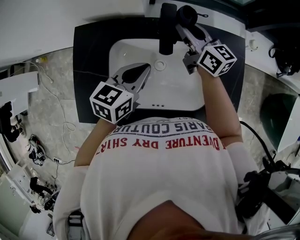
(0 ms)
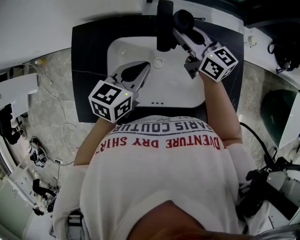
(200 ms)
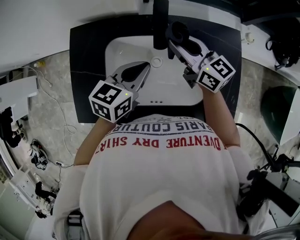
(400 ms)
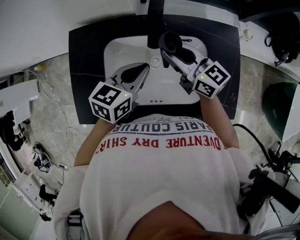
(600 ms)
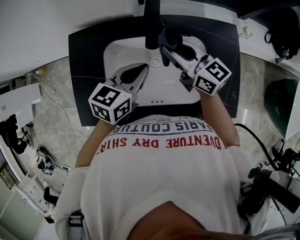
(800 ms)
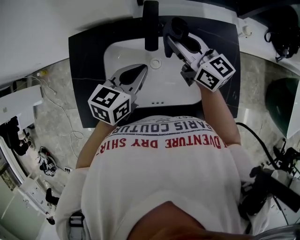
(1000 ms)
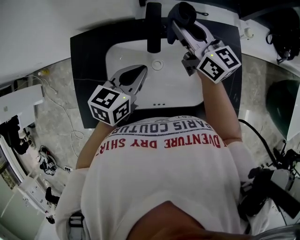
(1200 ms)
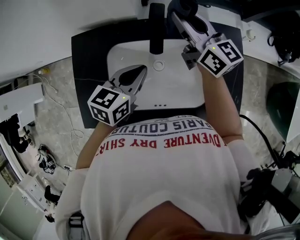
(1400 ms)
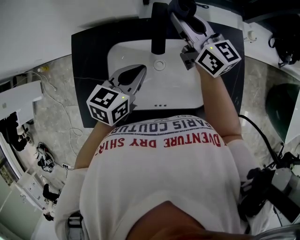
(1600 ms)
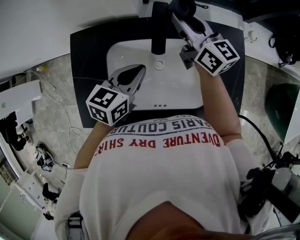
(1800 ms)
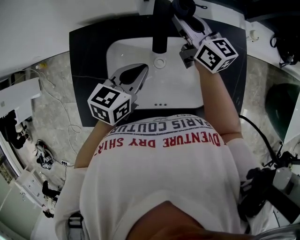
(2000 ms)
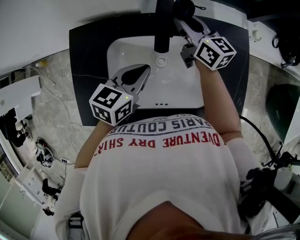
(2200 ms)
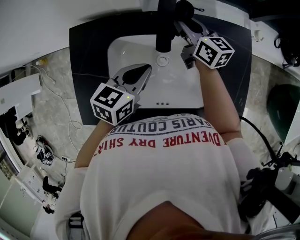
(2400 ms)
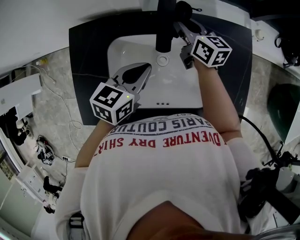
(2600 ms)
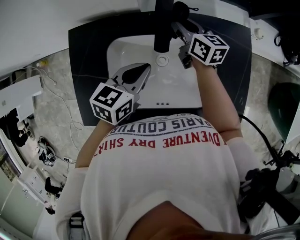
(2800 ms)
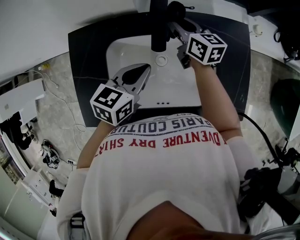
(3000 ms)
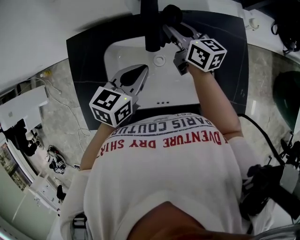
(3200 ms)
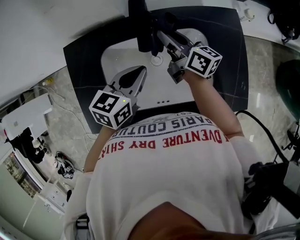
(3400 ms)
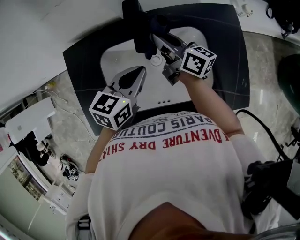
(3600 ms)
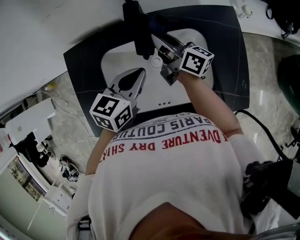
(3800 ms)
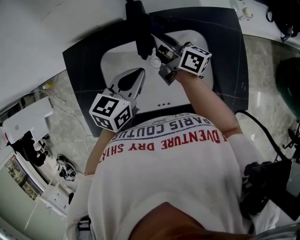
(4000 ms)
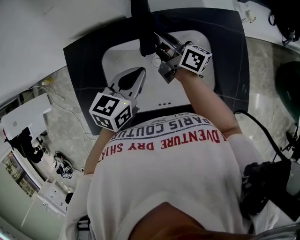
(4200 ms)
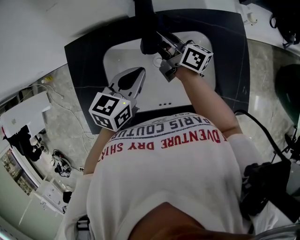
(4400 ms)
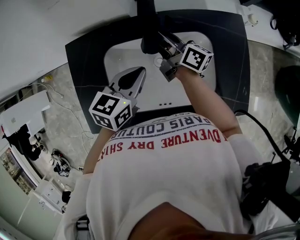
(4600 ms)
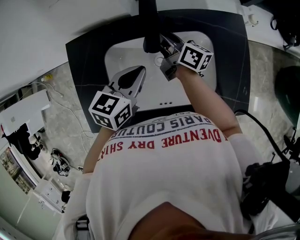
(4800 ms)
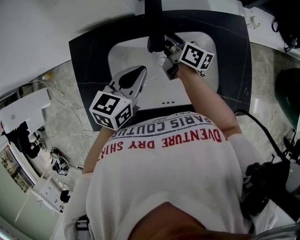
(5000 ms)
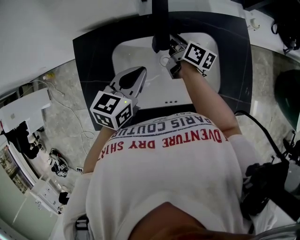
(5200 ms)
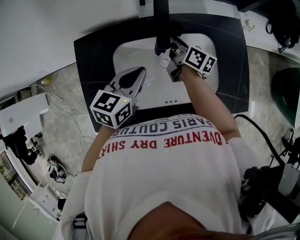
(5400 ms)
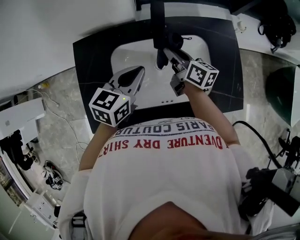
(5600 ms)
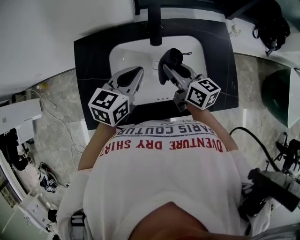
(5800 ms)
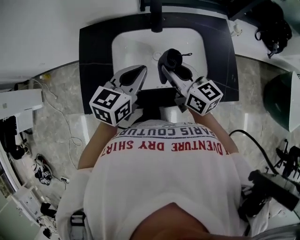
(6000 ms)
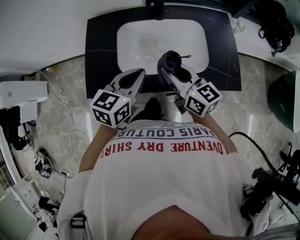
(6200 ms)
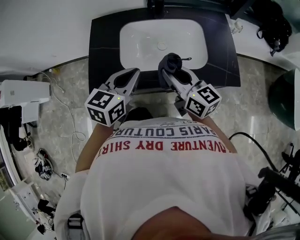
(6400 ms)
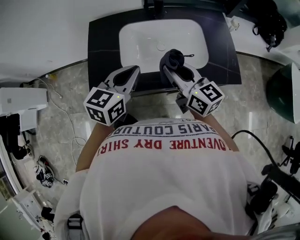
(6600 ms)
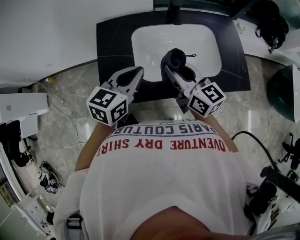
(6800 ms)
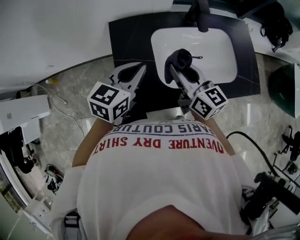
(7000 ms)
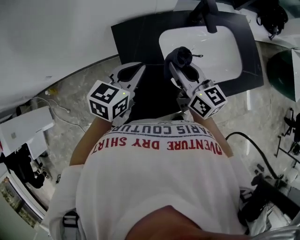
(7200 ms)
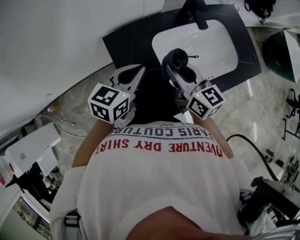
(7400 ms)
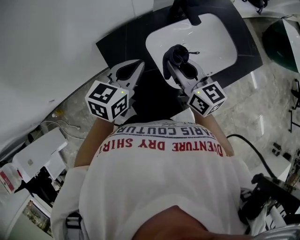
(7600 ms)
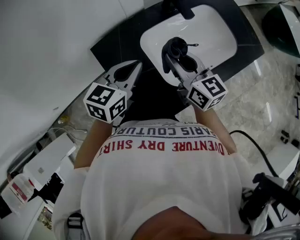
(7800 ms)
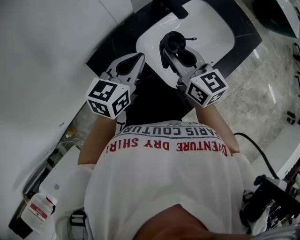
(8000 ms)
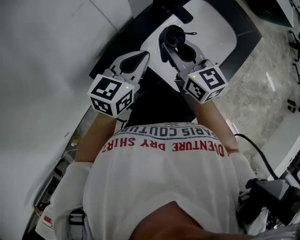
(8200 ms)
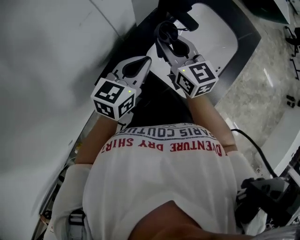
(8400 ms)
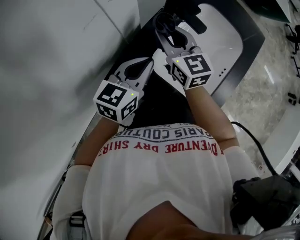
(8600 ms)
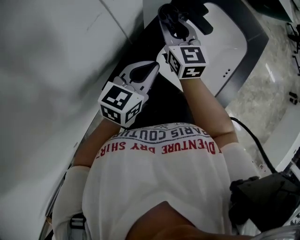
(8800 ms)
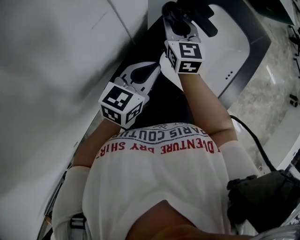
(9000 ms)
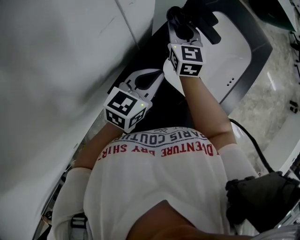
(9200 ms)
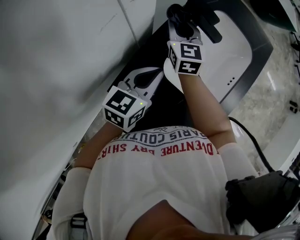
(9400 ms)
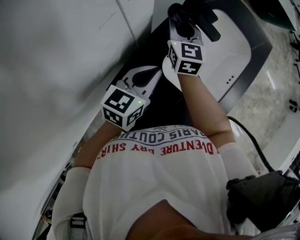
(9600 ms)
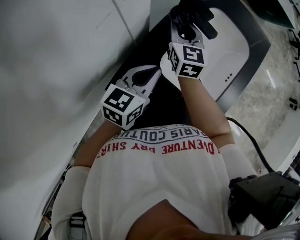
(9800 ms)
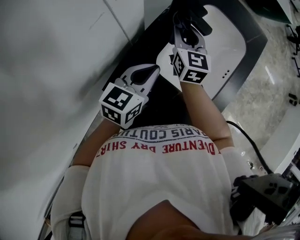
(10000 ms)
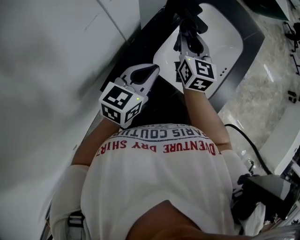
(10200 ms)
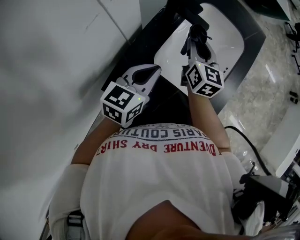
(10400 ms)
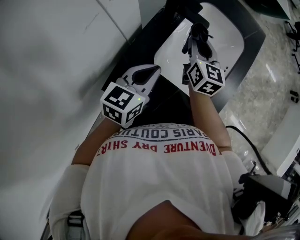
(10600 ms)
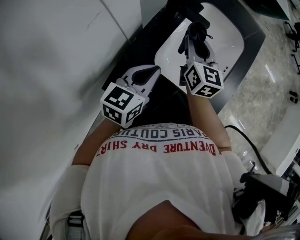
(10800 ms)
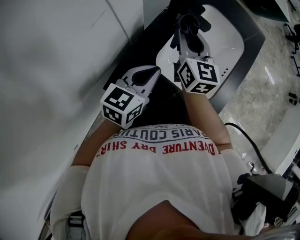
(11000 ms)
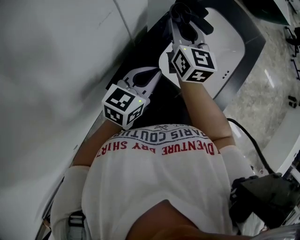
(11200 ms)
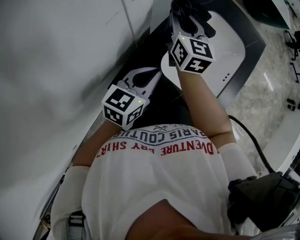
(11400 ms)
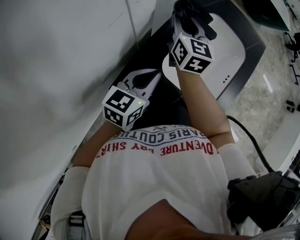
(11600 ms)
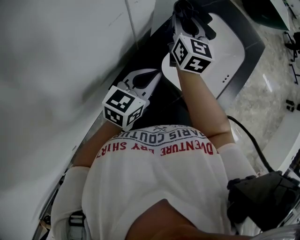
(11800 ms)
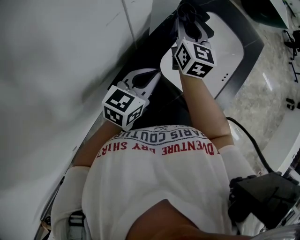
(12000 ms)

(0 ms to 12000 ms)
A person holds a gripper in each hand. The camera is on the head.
0 ms - 1600 ms: The right gripper heads upward, covering roughly 5 cm, and goes backward and returns, approximately 10 cm each way.
1600 ms - 3000 ms: The right gripper is displaced downward by about 15 cm, and changes its angle by approximately 20 degrees.
3000 ms - 4400 ms: The right gripper swivels roughly 40 degrees.
4400 ms - 6000 ms: The left gripper moves backward and upward, roughly 15 cm; the right gripper goes approximately 25 cm backward, and swivels some 40 degrees.
6000 ms - 7600 ms: The right gripper changes place by about 20 cm, and rotates approximately 30 degrees, while the left gripper ends up some 25 cm from where it was, and rotates some 20 degrees.
7600 ms - 9000 ms: The right gripper ends up roughly 30 cm from where it was, and rotates roughly 50 degrees. The left gripper ends up approximately 15 cm from where it was, and turns by roughly 30 degrees.
9000 ms - 10400 ms: The right gripper goes roughly 15 cm to the right.
10400 ms - 12000 ms: The right gripper heads to the left and upward, covering approximately 10 cm.

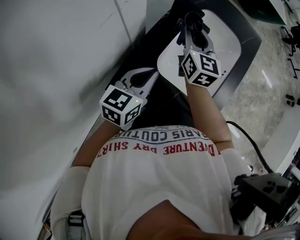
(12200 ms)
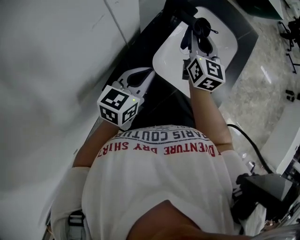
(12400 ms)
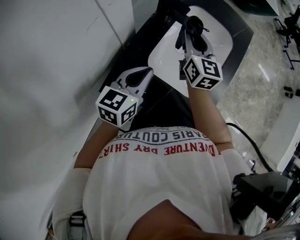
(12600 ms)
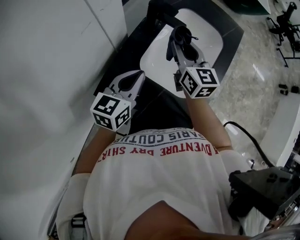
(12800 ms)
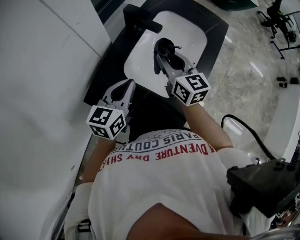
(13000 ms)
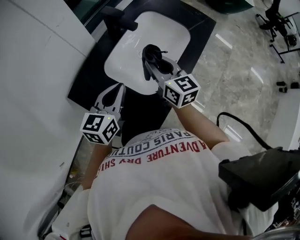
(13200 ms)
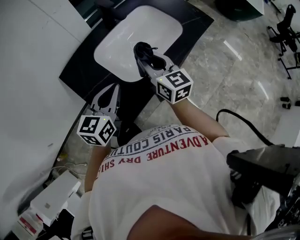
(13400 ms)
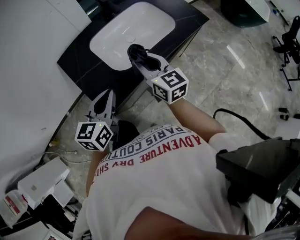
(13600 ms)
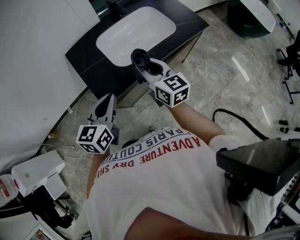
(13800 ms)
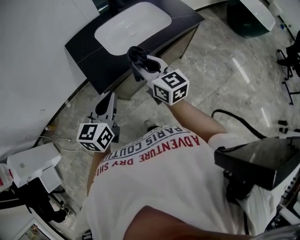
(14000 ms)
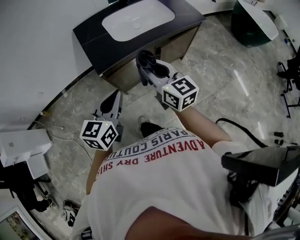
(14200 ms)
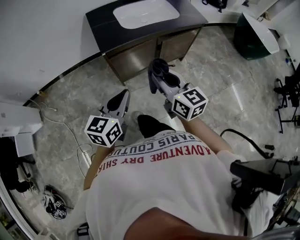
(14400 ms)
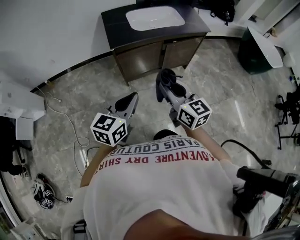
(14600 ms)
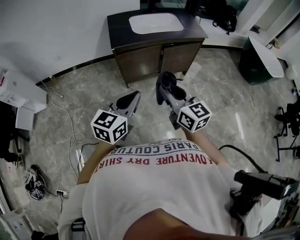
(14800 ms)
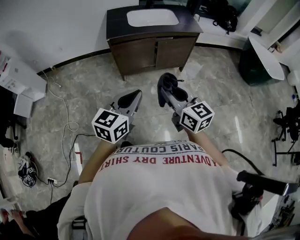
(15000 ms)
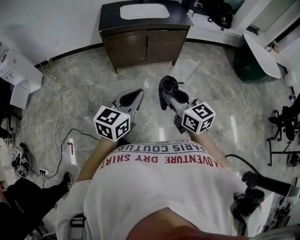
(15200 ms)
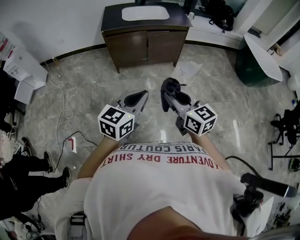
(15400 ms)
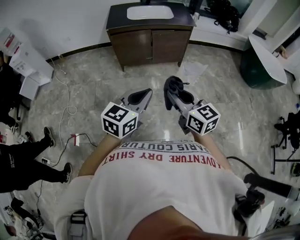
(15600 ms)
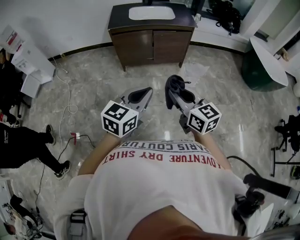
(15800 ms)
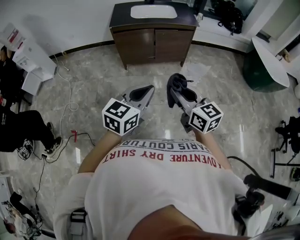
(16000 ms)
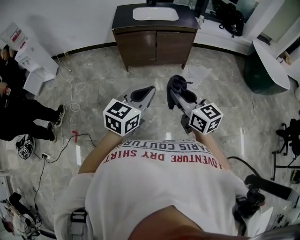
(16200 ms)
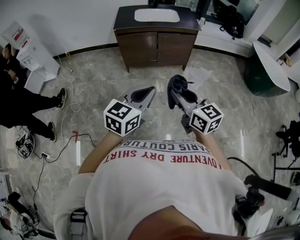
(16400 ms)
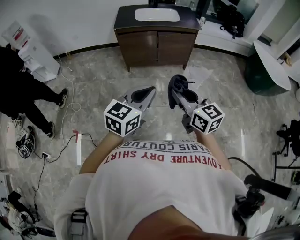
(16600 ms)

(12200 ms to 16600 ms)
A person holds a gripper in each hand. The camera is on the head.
12200 ms - 13600 ms: The left gripper moves approximately 35 cm, and changes its angle by about 40 degrees. Meanwhile the right gripper changes place by some 35 cm, and changes its angle by approximately 50 degrees.
13600 ms - 15200 ms: The pair of grippers is taken backward and to the right, some 80 cm. The right gripper swivels some 30 degrees.
15200 ms - 16600 ms: The grippers both shift backward and to the right by approximately 10 cm.

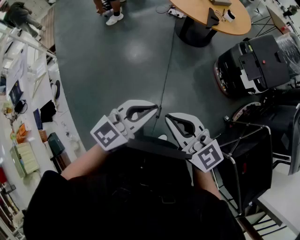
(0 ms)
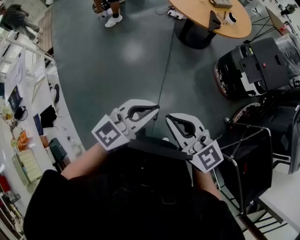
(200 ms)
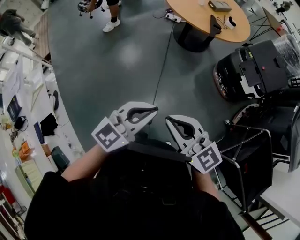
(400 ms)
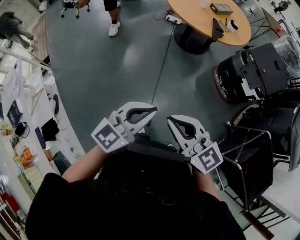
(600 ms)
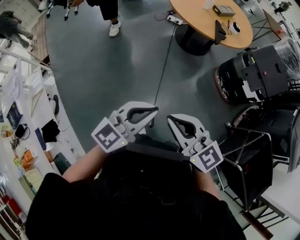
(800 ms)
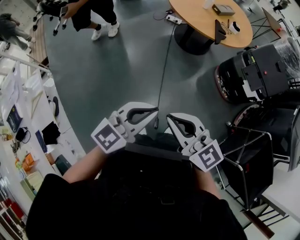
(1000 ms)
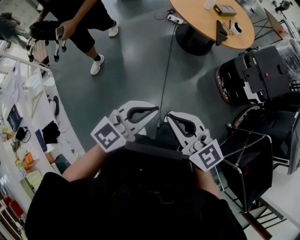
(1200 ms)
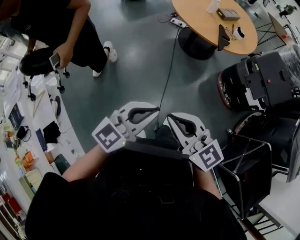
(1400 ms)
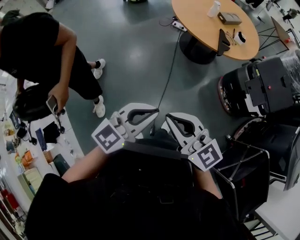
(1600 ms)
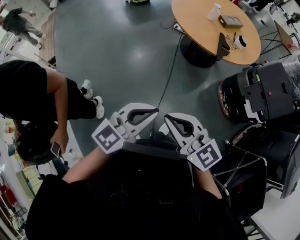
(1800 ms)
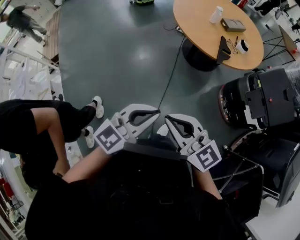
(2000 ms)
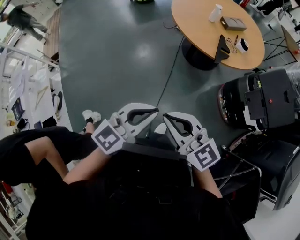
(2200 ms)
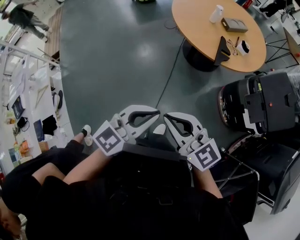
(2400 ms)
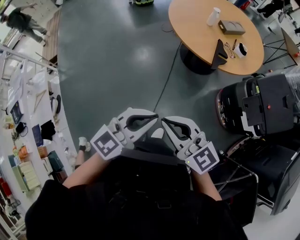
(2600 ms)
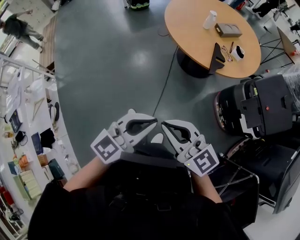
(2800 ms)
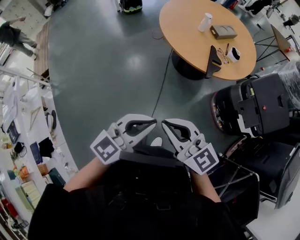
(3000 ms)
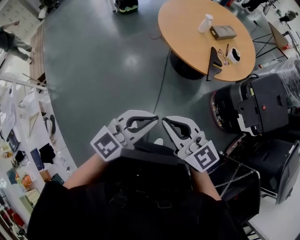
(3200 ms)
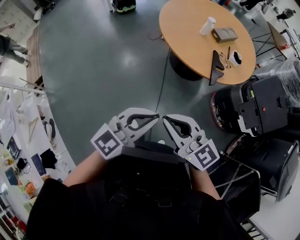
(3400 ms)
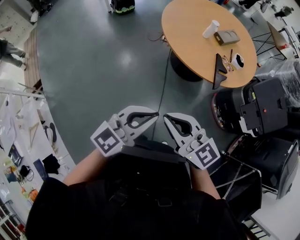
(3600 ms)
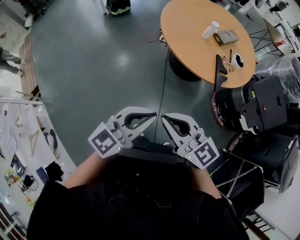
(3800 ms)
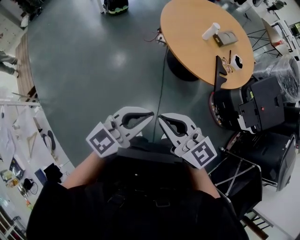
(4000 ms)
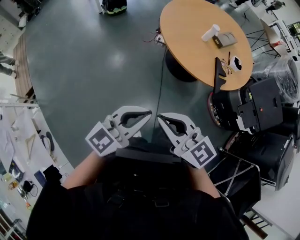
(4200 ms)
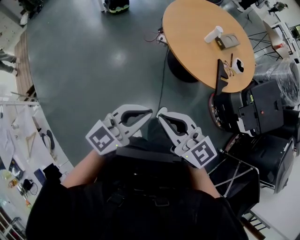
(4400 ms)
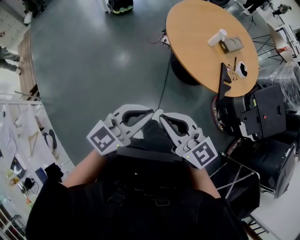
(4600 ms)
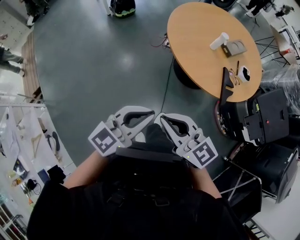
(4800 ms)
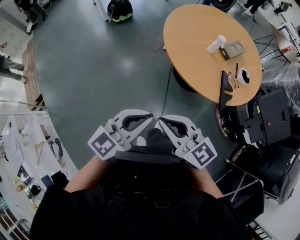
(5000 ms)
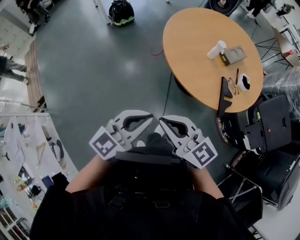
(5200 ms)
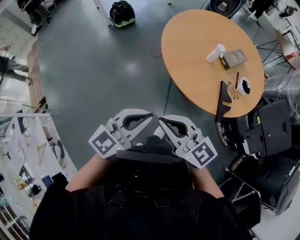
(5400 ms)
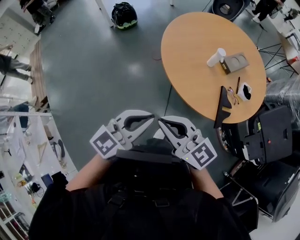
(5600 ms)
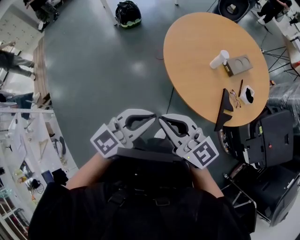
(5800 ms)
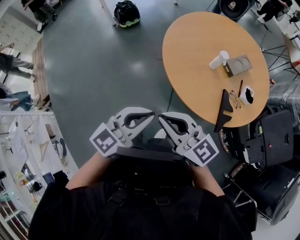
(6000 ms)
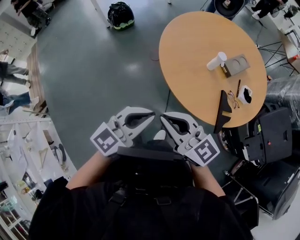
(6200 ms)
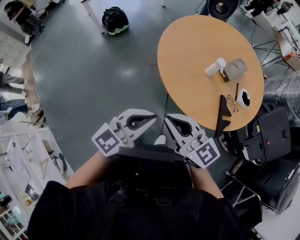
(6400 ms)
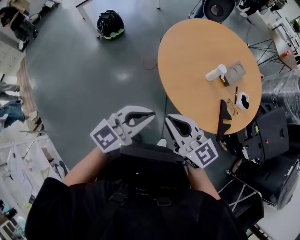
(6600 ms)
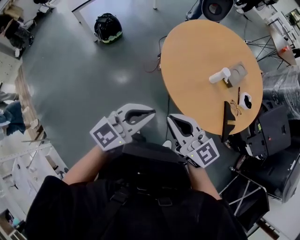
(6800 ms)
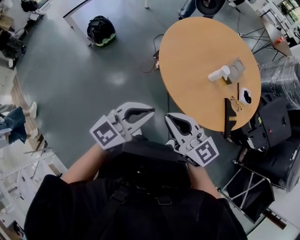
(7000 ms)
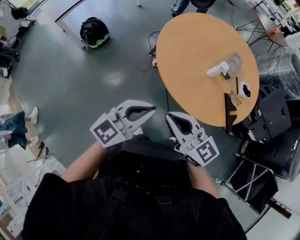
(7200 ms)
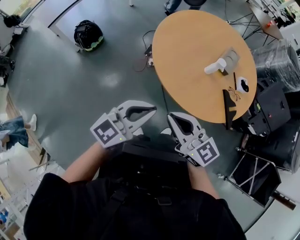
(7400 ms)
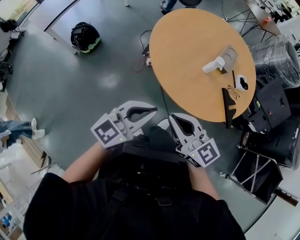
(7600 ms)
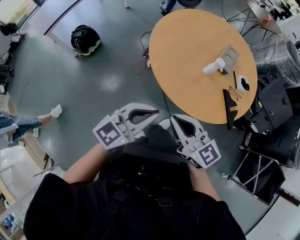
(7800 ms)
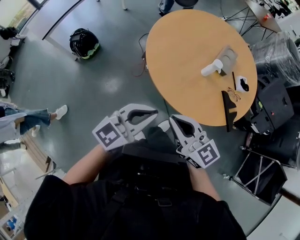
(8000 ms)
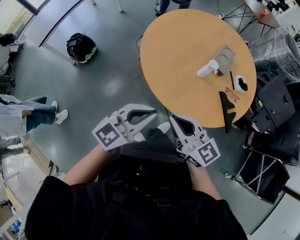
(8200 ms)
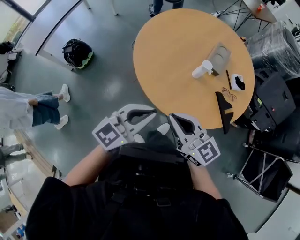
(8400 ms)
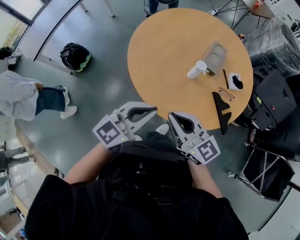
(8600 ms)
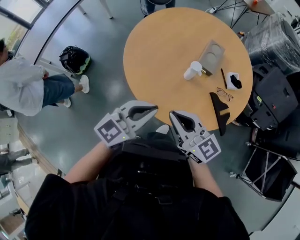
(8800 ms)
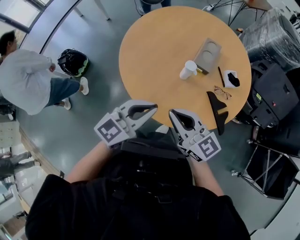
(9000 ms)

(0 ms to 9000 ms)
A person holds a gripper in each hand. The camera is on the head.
0 ms - 1600 ms: The grippers both shift forward and to the left by roughly 30 cm.
1600 ms - 3000 ms: Both grippers move forward and to the right, approximately 25 cm.
3000 ms - 4400 ms: The grippers both shift to the left and forward by roughly 40 cm.
4400 ms - 6000 ms: The two grippers go some 30 cm forward and to the right.
6000 ms - 7600 ms: The right gripper moves about 30 cm, and swivels approximately 30 degrees, while the left gripper shifts by about 35 cm, and rotates about 30 degrees.
7600 ms - 9000 ms: The two grippers go approximately 30 cm to the right and forward.
